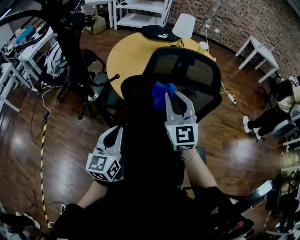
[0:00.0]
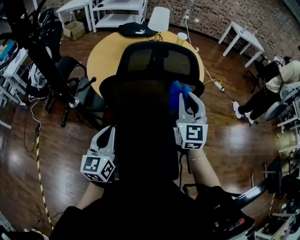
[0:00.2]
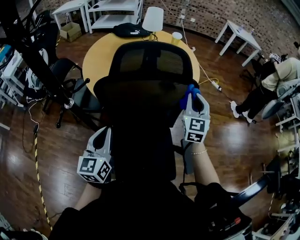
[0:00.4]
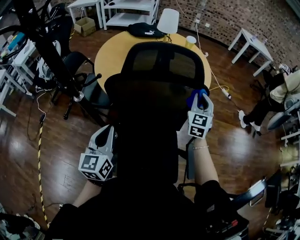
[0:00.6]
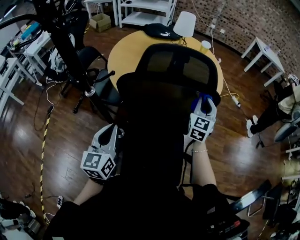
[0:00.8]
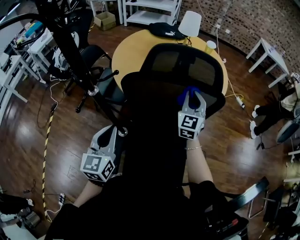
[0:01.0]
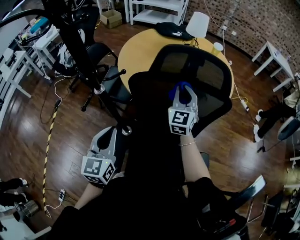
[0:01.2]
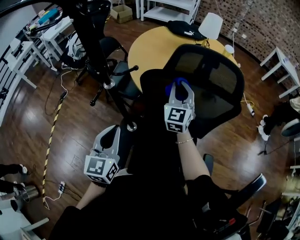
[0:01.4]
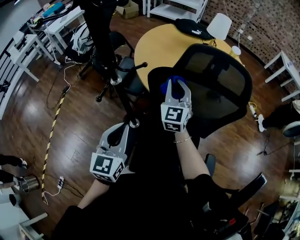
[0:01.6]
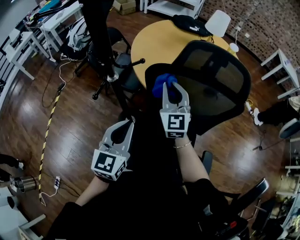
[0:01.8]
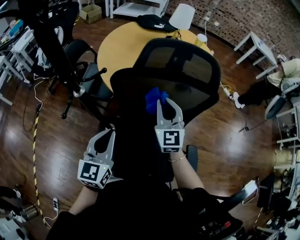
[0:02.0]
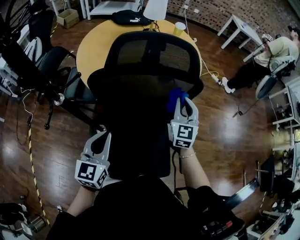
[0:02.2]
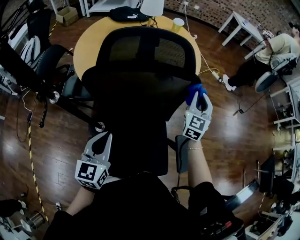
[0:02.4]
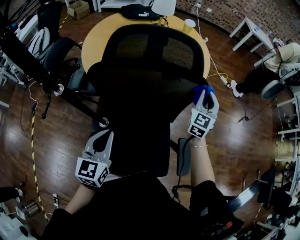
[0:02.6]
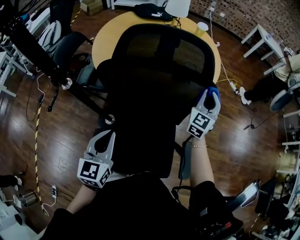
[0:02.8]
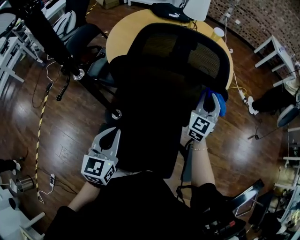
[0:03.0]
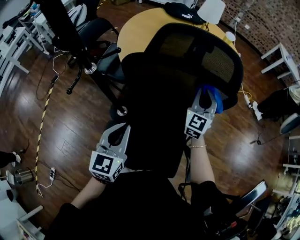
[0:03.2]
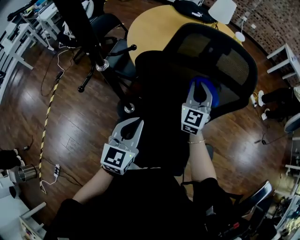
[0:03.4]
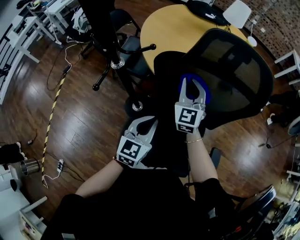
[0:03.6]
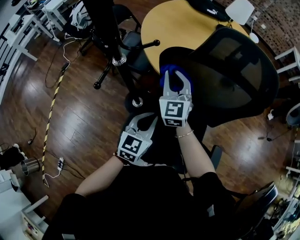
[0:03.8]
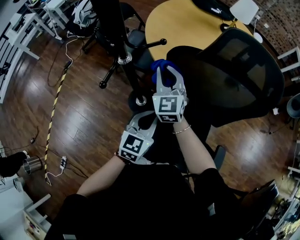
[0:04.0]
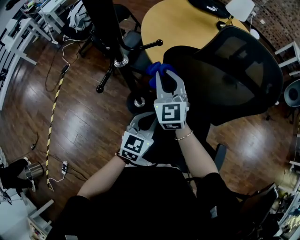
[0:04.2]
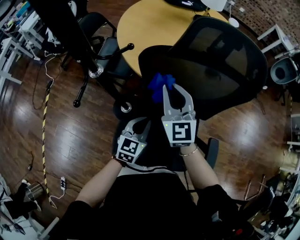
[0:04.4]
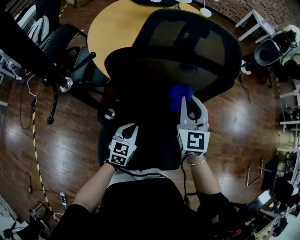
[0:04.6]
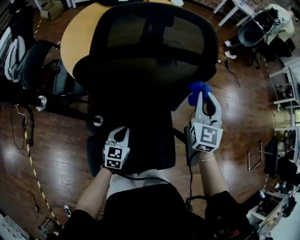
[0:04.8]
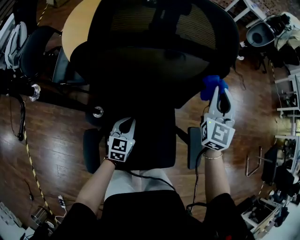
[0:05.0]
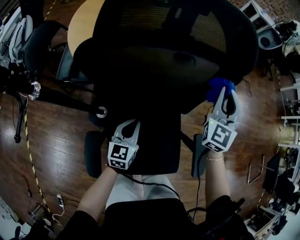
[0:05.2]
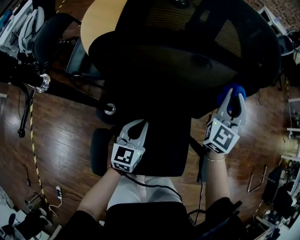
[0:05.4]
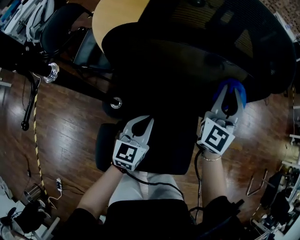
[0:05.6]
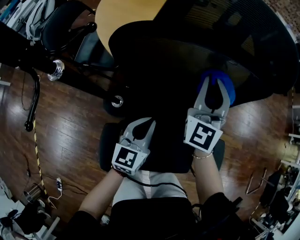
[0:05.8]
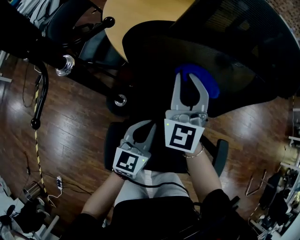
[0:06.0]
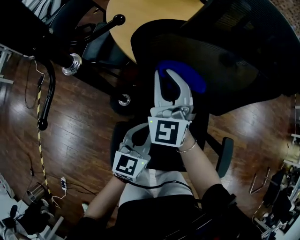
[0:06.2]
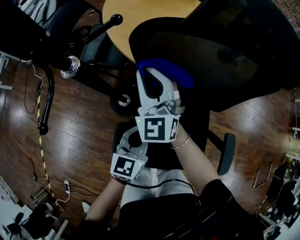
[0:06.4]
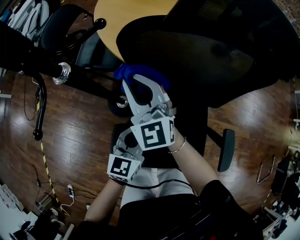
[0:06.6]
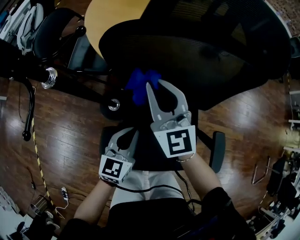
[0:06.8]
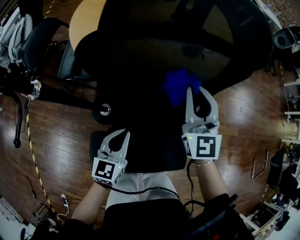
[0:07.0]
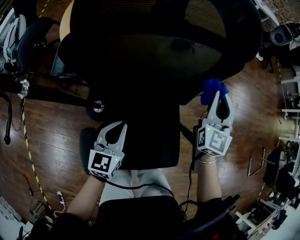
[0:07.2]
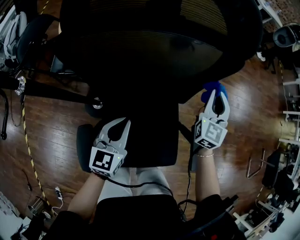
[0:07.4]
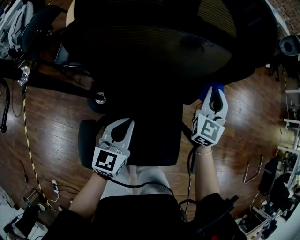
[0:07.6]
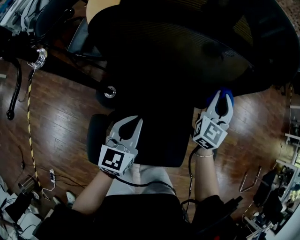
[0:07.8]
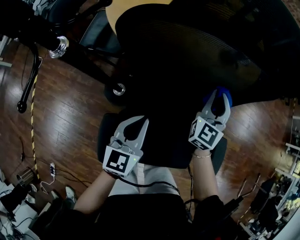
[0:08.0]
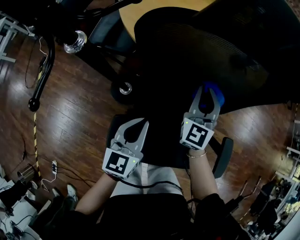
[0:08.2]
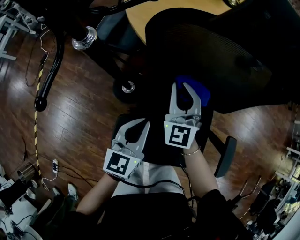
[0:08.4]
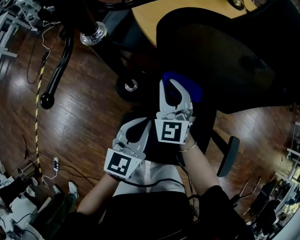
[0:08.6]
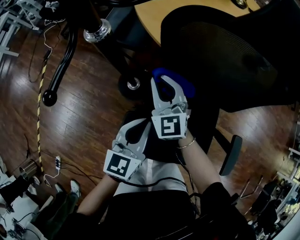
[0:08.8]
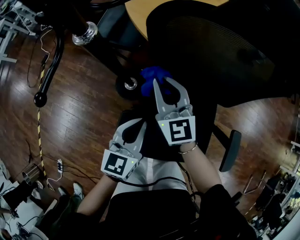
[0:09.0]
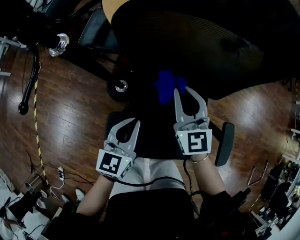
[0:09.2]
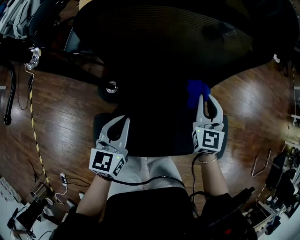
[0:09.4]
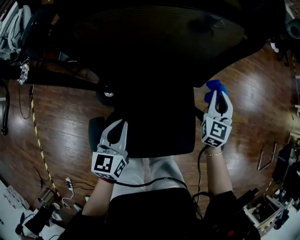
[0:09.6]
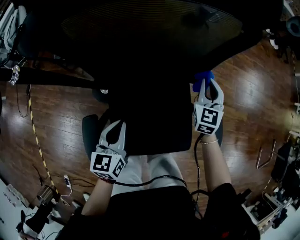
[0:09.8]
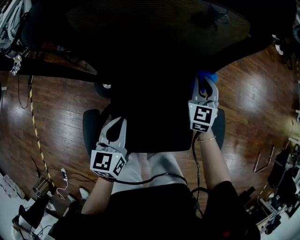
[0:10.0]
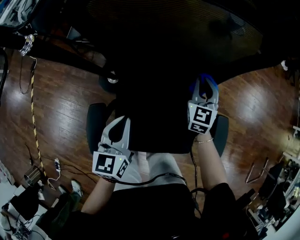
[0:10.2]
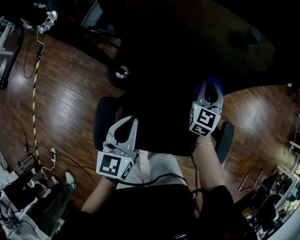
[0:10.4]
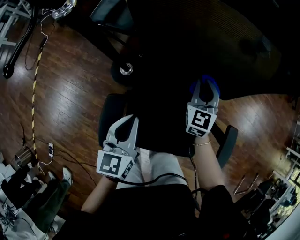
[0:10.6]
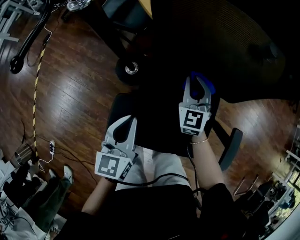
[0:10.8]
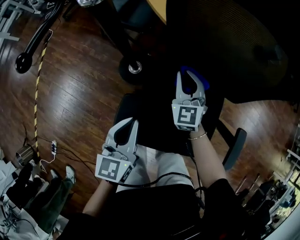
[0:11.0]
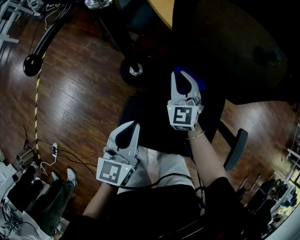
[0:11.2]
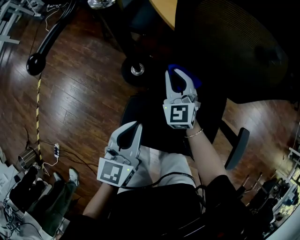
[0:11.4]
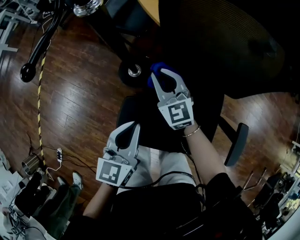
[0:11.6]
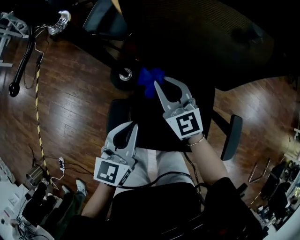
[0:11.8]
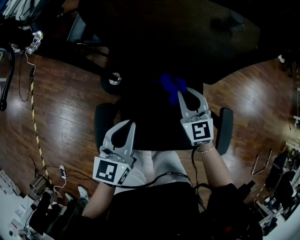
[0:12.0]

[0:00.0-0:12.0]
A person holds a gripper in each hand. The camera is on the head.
0:00.0 to 0:01.6: The right gripper is displaced downward and forward by about 10 cm, and reaches approximately 25 cm to the right, then returns. Meanwhile the left gripper travels to the right and back again, some 5 cm each way.
0:01.6 to 0:03.0: The left gripper ends up about 15 cm from where it was. Meanwhile the right gripper moves approximately 30 cm, and turns by approximately 20 degrees.
0:03.0 to 0:04.4: The left gripper moves downward, about 15 cm. Meanwhile the right gripper travels to the left by roughly 30 cm, and turns by approximately 30 degrees.
0:04.4 to 0:06.0: The right gripper goes roughly 5 cm forward, reaches some 35 cm to the right, then returns, and changes its angle by approximately 20 degrees; the left gripper travels to the right and back again, approximately 10 cm each way.
0:06.0 to 0:07.6: The left gripper moves approximately 5 cm. The right gripper moves roughly 30 cm, and turns by about 30 degrees.
0:07.6 to 0:09.0: The left gripper changes place by roughly 15 cm. The right gripper ends up about 40 cm from where it was, and turns by approximately 50 degrees.
0:09.0 to 0:10.4: The right gripper shifts by about 30 cm, and swivels some 40 degrees.
0:10.4 to 0:12.0: The left gripper goes to the left and returns, approximately 10 cm each way. Meanwhile the right gripper moves backward, some 10 cm, travels to the left and back again, approximately 30 cm each way, and rotates approximately 30 degrees.

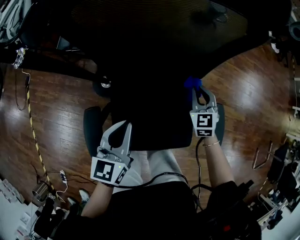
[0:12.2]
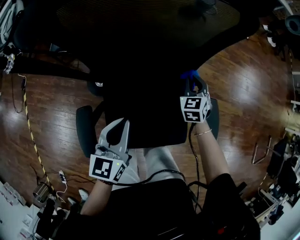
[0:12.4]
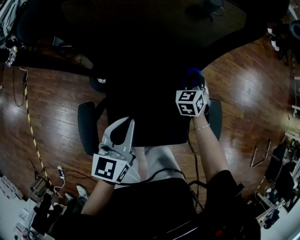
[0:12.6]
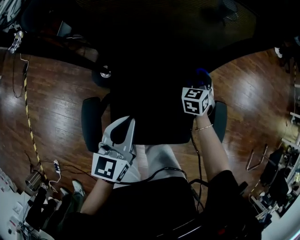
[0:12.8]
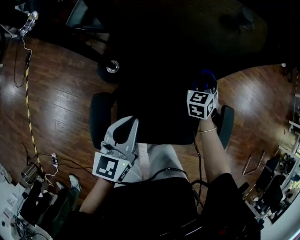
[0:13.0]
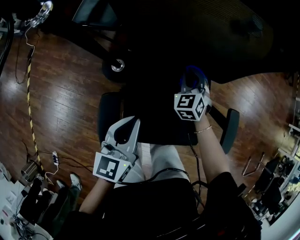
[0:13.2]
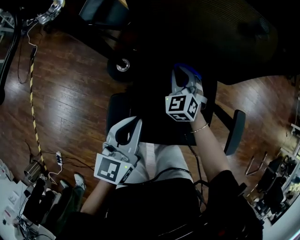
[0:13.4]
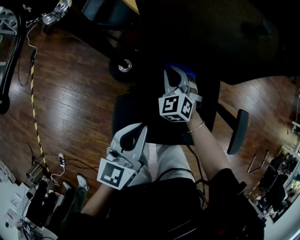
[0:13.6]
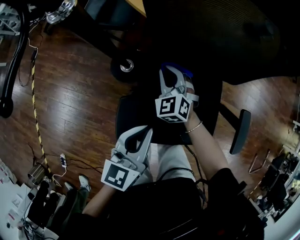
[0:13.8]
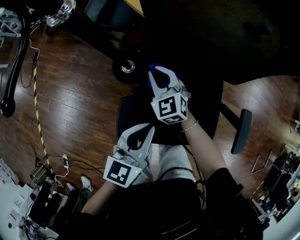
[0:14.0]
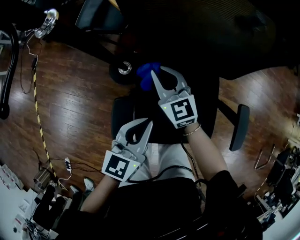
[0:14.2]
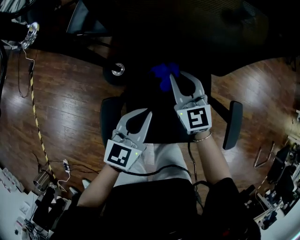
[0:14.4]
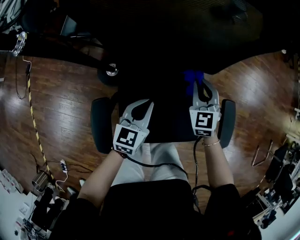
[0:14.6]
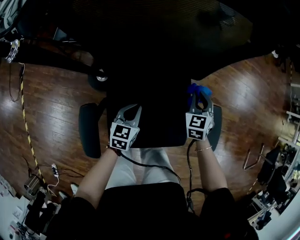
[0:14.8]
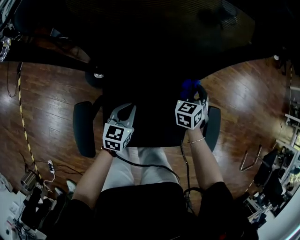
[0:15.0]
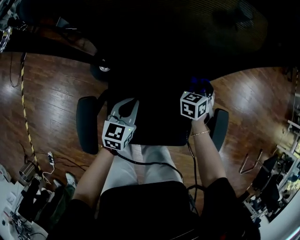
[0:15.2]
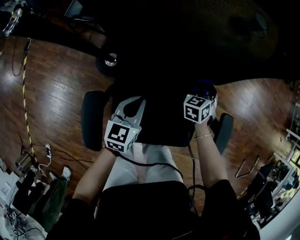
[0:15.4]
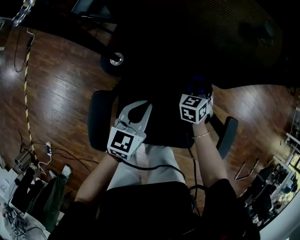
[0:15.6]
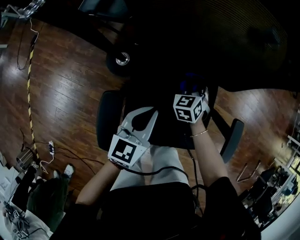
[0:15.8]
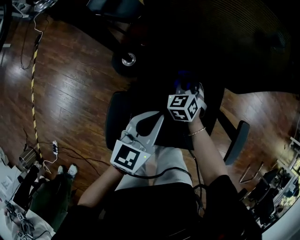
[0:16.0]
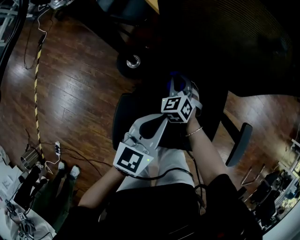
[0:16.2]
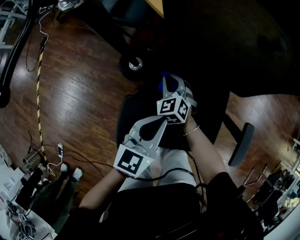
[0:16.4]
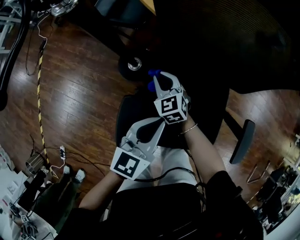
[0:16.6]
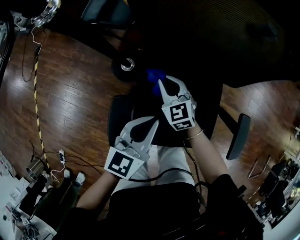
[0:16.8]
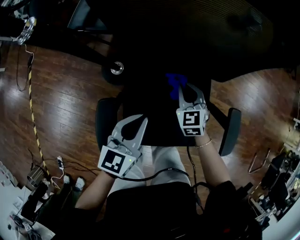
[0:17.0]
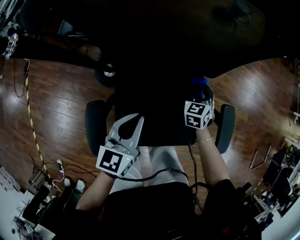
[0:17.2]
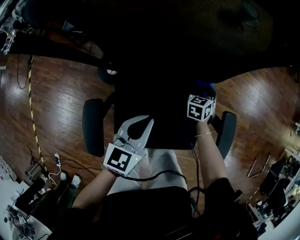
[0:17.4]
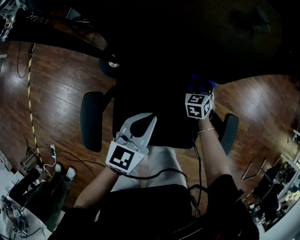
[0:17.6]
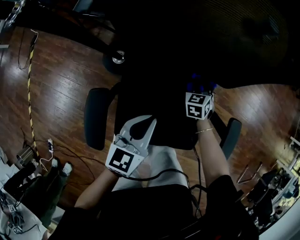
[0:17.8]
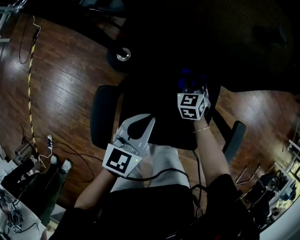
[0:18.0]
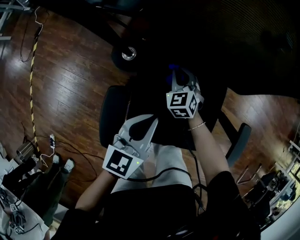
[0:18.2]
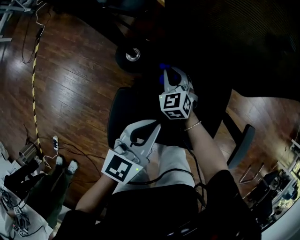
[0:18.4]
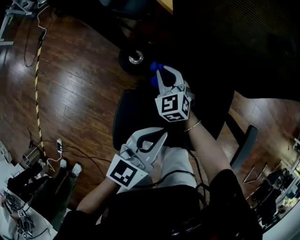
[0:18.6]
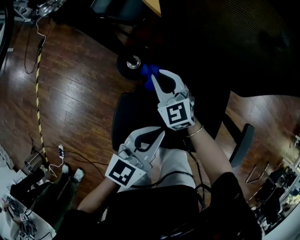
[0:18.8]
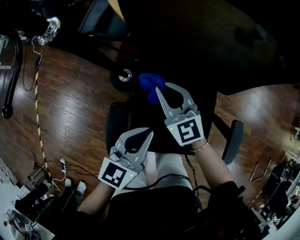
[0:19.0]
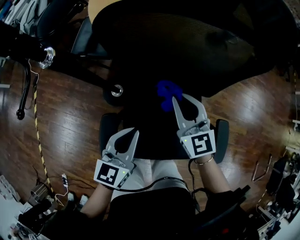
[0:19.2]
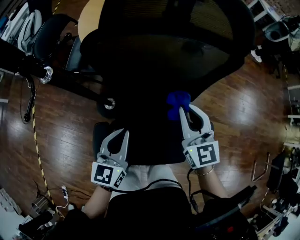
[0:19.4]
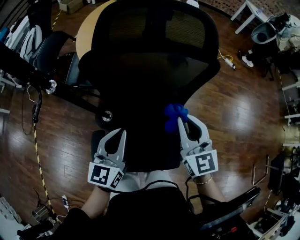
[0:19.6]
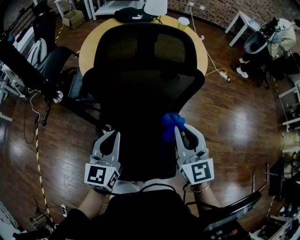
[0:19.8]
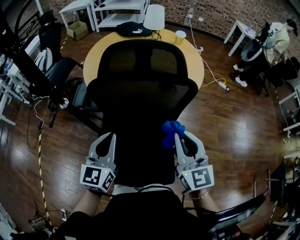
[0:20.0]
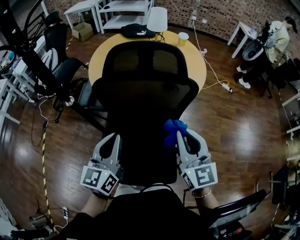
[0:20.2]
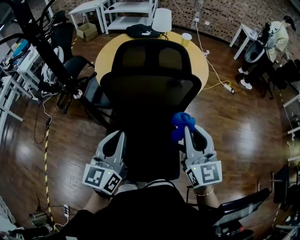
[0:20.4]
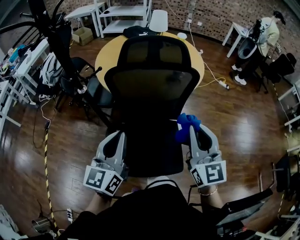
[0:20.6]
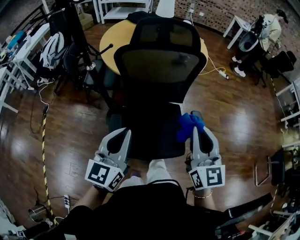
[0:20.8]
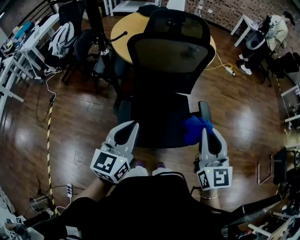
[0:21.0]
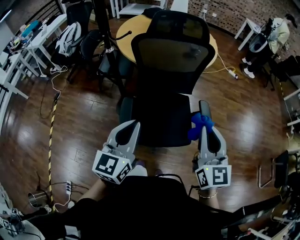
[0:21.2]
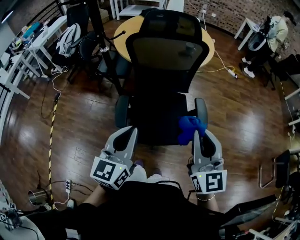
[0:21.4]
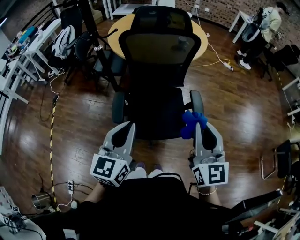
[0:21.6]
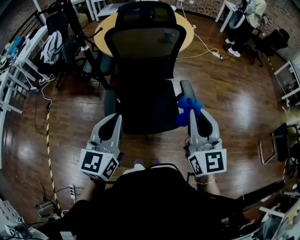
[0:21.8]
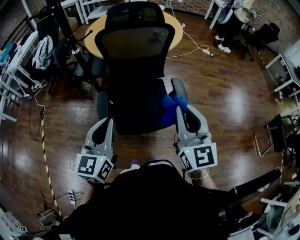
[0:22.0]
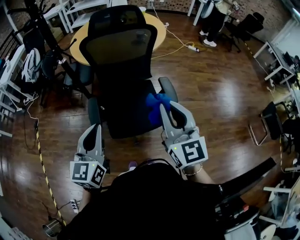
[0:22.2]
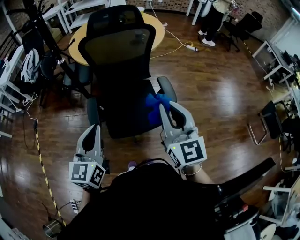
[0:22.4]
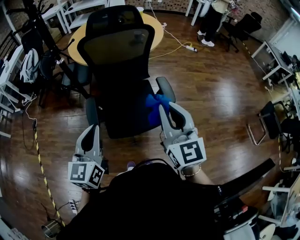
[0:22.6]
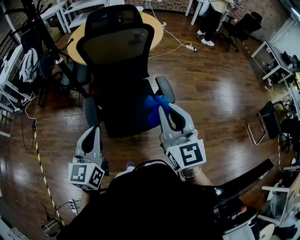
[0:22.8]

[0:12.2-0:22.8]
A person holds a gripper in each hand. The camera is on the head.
0:12.2 to 0:13.8: The left gripper travels to the left by some 10 cm. The right gripper is displaced to the left by approximately 35 cm, and turns by about 30 degrees.
0:13.8 to 0:15.2: The left gripper is displaced downward by about 15 cm. Meanwhile the right gripper moves roughly 10 cm upward and comes back, and swivels some 40 degrees.
0:15.2 to 0:16.8: The right gripper shifts by about 35 cm, and rotates some 50 degrees, while the left gripper shifts roughly 15 cm upward.
0:16.8 to 0:18.2: The right gripper is displaced downward by roughly 10 cm.
0:18.2 to 0:19.8: The right gripper is displaced upward and to the right by approximately 50 cm, and points its fingers approximately 40 degrees further upward; the left gripper heads upward, covering roughly 25 cm.
0:19.8 to 0:21.2: The two grippers go approximately 30 cm backward.
0:21.2 to 0:22.8: Both grippers move backward, approximately 10 cm.

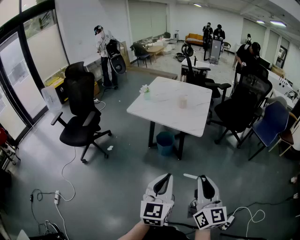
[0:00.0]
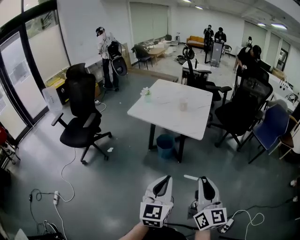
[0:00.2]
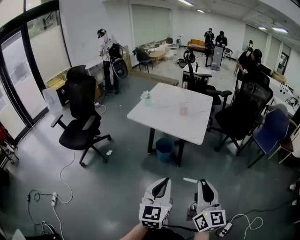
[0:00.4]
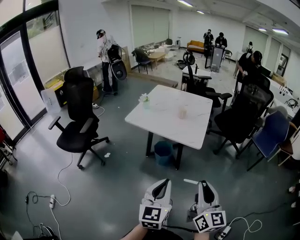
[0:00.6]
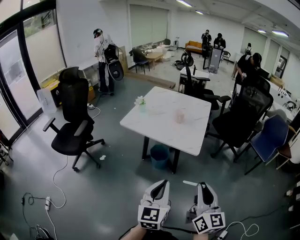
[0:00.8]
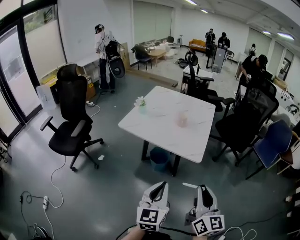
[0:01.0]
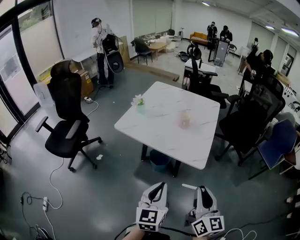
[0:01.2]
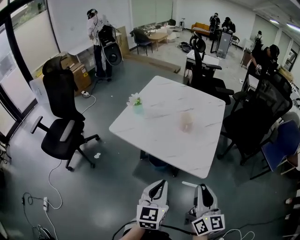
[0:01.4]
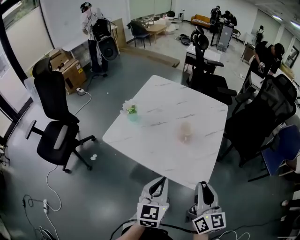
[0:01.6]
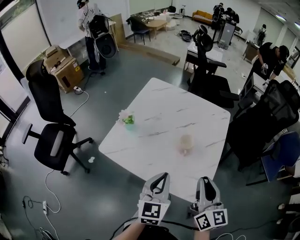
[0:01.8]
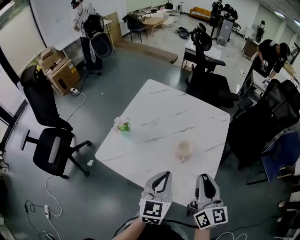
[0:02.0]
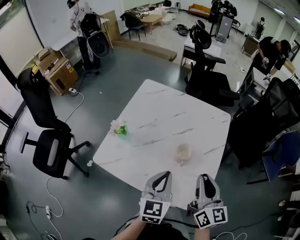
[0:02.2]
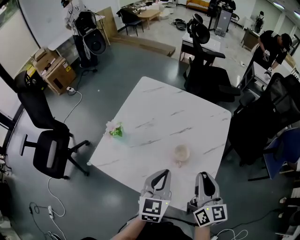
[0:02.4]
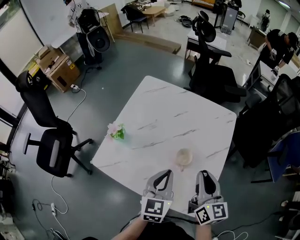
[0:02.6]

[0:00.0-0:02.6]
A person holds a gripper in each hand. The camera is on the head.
0:00.0 to 0:01.2: The right gripper shifts about 25 cm forward. The left gripper travels forward and downward by roughly 25 cm.
0:01.2 to 0:02.6: Both grippers are carried forward, roughly 40 cm.
